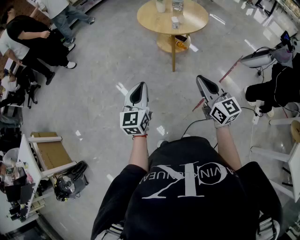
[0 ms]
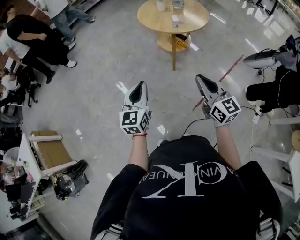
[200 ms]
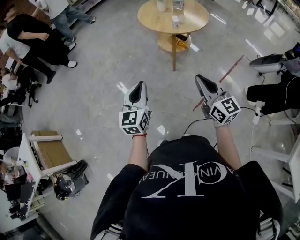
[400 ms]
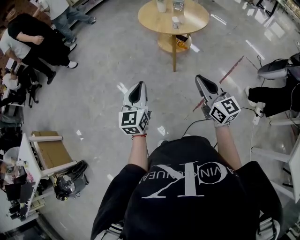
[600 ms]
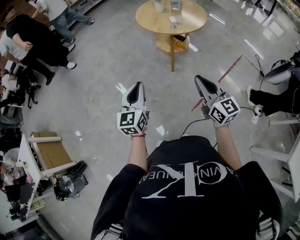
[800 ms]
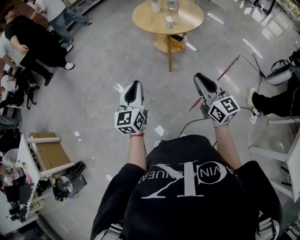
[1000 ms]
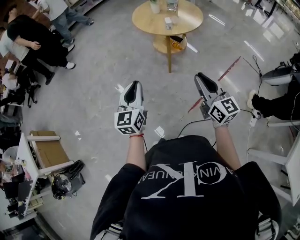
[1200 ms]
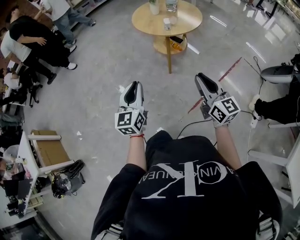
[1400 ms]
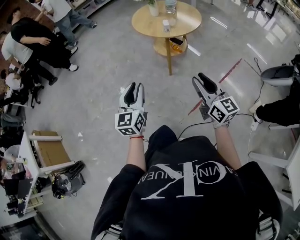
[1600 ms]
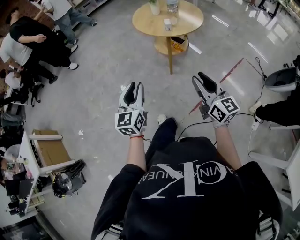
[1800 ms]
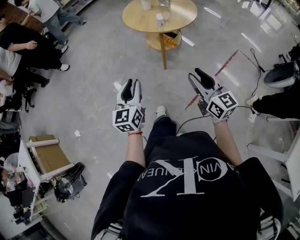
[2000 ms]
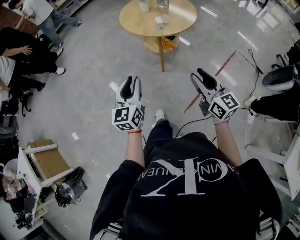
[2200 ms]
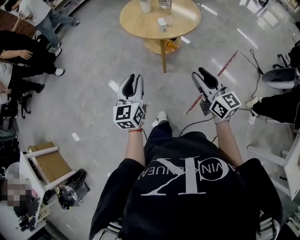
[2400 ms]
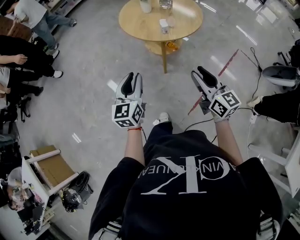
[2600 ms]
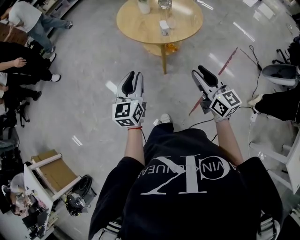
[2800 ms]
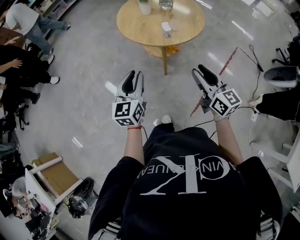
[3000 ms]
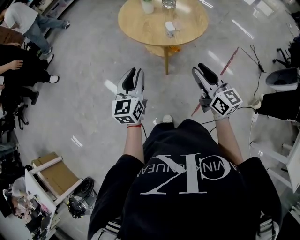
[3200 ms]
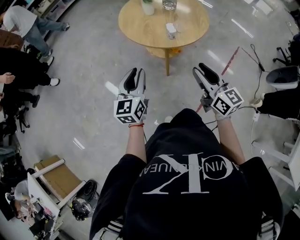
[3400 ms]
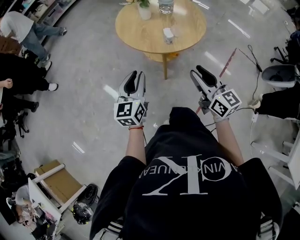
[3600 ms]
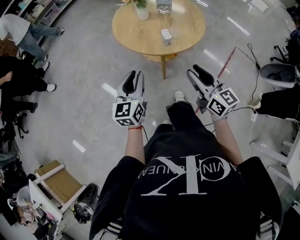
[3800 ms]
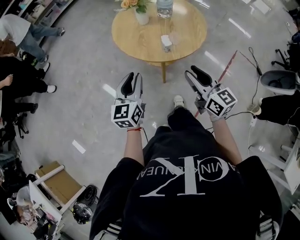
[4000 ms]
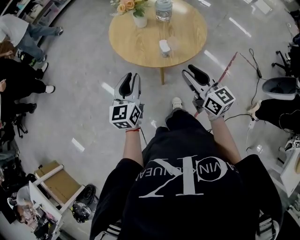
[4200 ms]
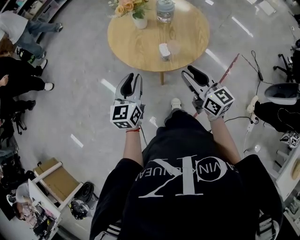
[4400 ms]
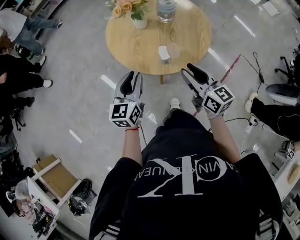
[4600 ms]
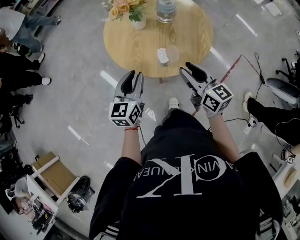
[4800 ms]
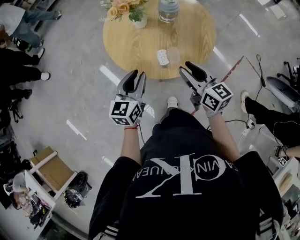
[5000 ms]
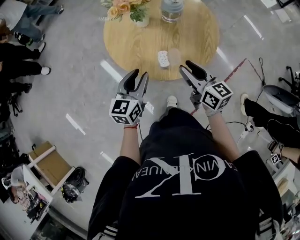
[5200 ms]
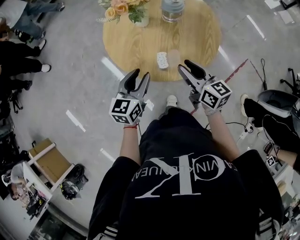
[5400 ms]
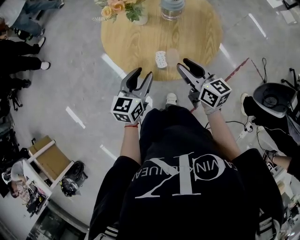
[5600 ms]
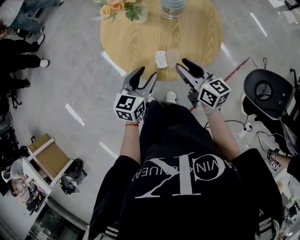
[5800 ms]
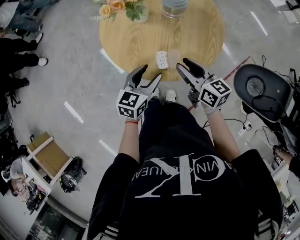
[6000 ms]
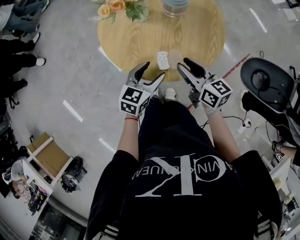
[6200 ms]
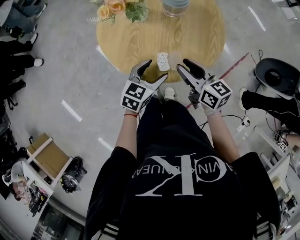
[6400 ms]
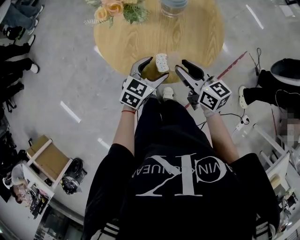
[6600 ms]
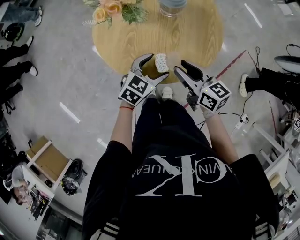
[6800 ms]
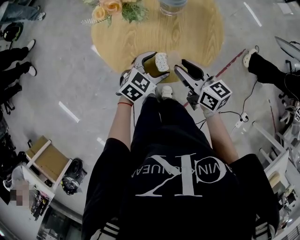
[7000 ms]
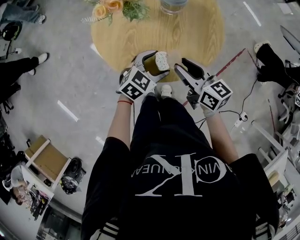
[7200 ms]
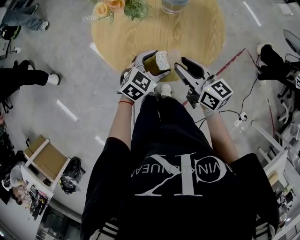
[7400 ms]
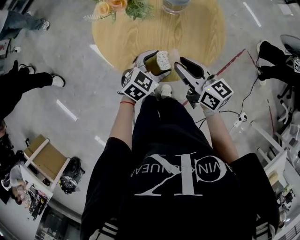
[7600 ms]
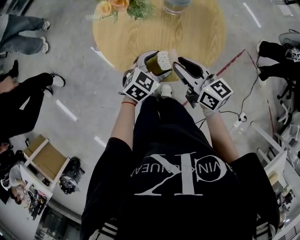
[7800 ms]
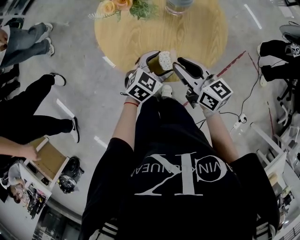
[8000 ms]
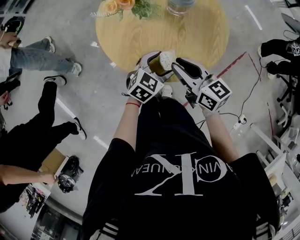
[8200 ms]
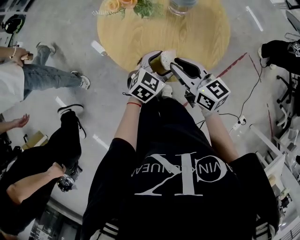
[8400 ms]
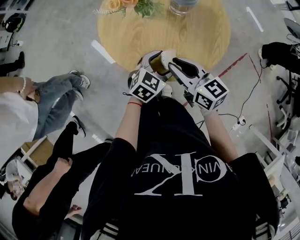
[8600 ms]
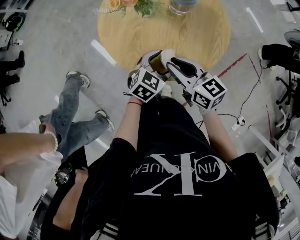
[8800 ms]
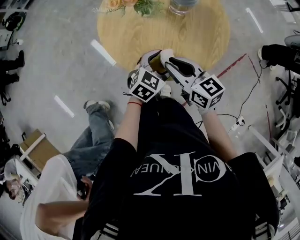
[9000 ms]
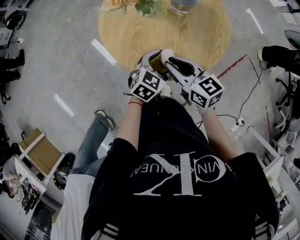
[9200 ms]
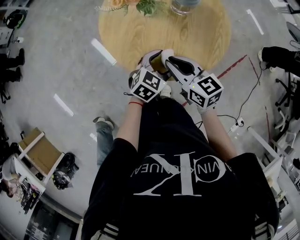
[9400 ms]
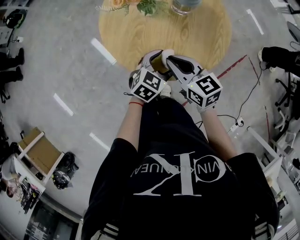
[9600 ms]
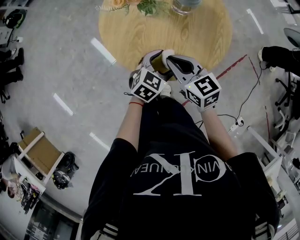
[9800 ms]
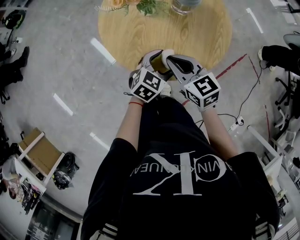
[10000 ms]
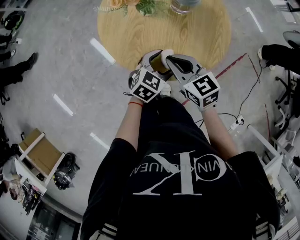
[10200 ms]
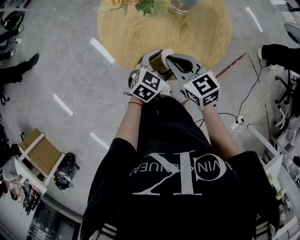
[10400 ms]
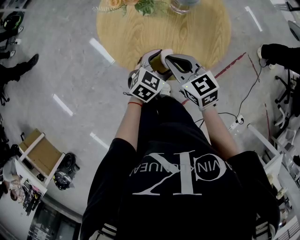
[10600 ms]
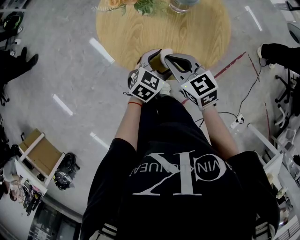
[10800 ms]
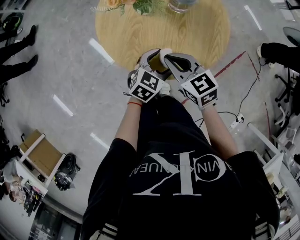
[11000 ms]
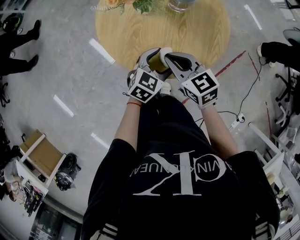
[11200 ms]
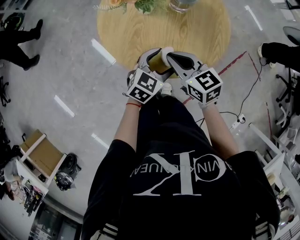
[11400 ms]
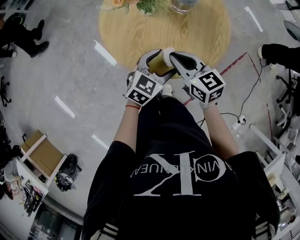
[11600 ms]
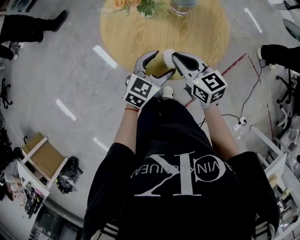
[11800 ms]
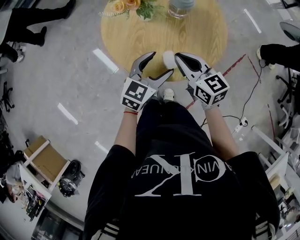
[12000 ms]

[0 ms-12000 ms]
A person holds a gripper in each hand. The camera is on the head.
0 ms to 1600 ms: Both grippers move to the right, about 5 cm.
1600 ms to 3000 ms: Both grippers move forward, roughly 25 cm.
3000 ms to 4400 ms: The two grippers go about 15 cm forward.
4400 ms to 6000 ms: The left gripper goes about 15 cm to the right, downward and forward, and opens its fingers, while the right gripper moves forward and downward, roughly 15 cm.
6000 ms to 7600 ms: The left gripper heads downward, covering about 5 cm, and turns by roughly 30 degrees.
7600 ms to 9000 ms: The grippers make only small movements.
9000 ms to 10400 ms: The grippers move only a little.
10400 ms to 12000 ms: The left gripper travels upward by roughly 10 cm.

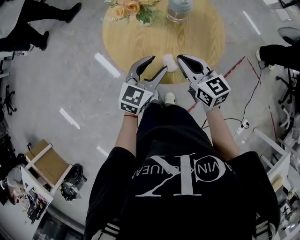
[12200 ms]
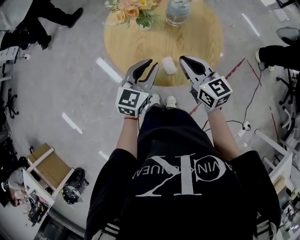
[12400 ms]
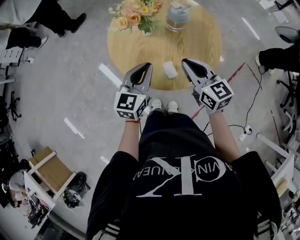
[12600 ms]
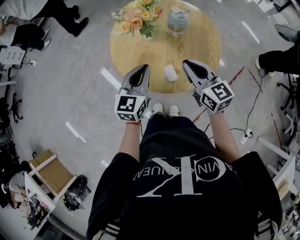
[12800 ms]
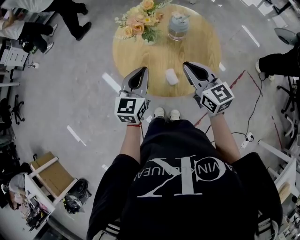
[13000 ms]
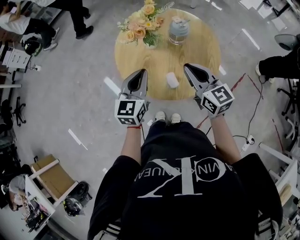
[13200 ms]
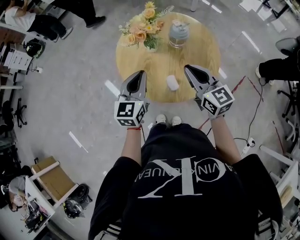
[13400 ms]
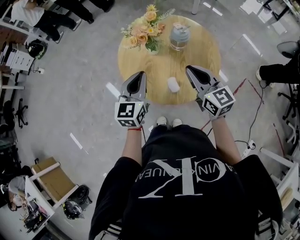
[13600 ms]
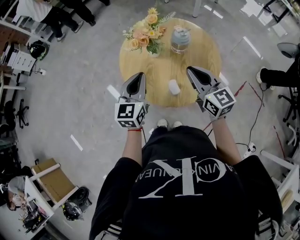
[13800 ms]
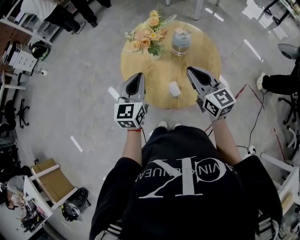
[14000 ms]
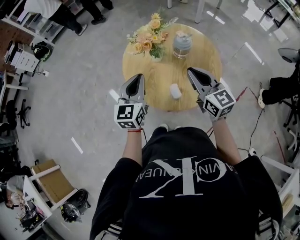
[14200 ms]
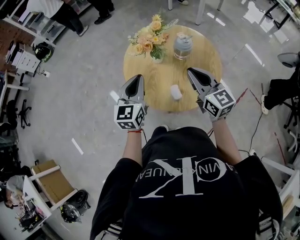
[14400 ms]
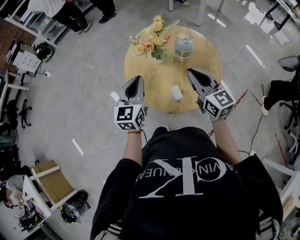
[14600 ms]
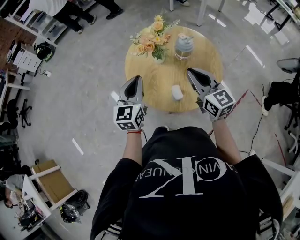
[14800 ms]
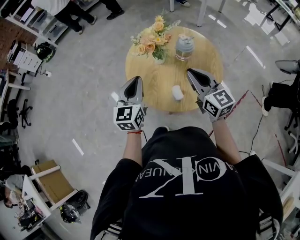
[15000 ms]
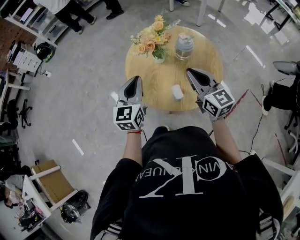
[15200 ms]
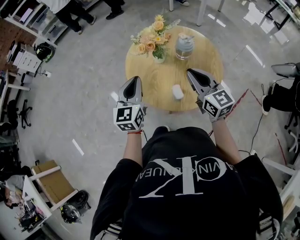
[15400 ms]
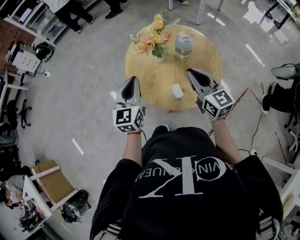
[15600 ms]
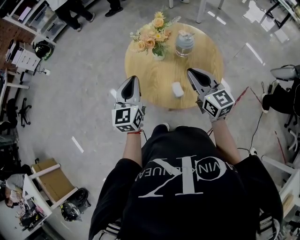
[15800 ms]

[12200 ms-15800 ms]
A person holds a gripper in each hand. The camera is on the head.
12200 ms to 14000 ms: The right gripper goes roughly 10 cm upward. The left gripper goes some 15 cm upward and to the left, changes its angle by approximately 30 degrees, and closes its fingers.
14000 ms to 15800 ms: The grippers make only small movements.

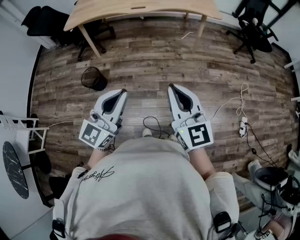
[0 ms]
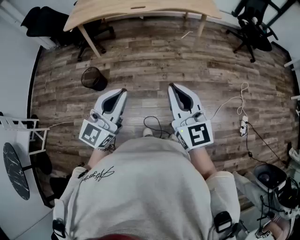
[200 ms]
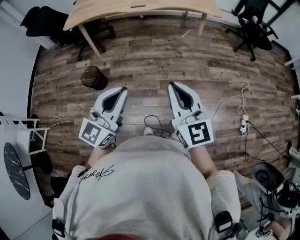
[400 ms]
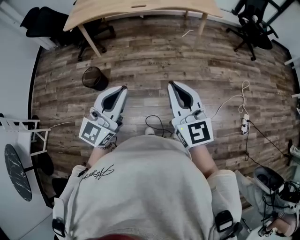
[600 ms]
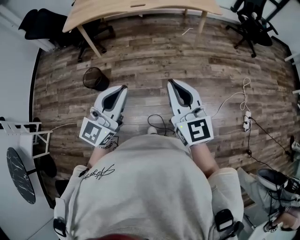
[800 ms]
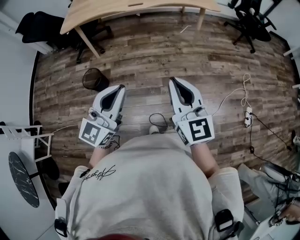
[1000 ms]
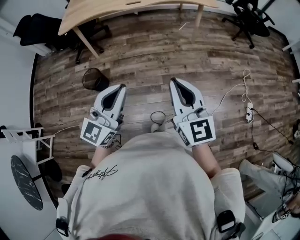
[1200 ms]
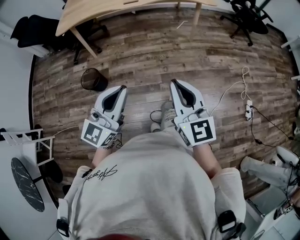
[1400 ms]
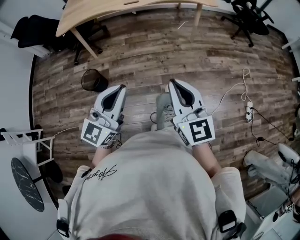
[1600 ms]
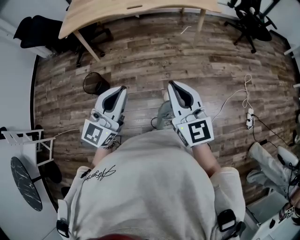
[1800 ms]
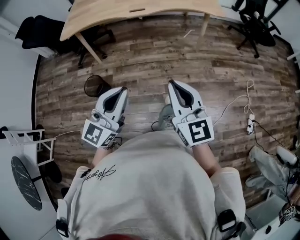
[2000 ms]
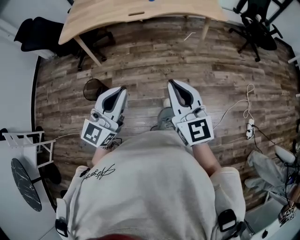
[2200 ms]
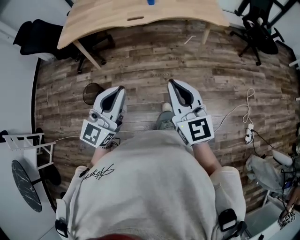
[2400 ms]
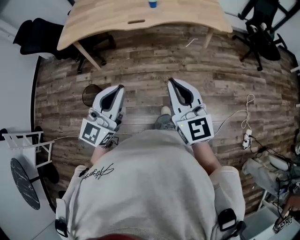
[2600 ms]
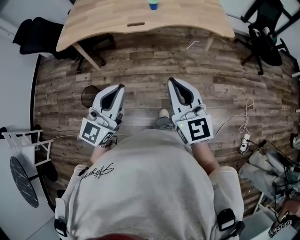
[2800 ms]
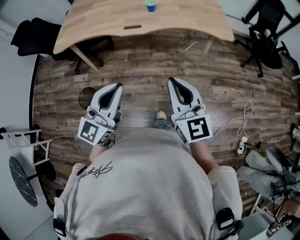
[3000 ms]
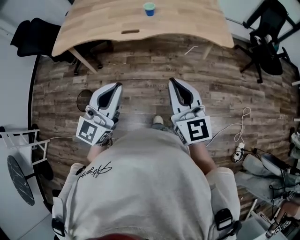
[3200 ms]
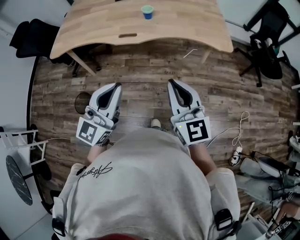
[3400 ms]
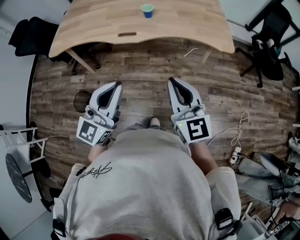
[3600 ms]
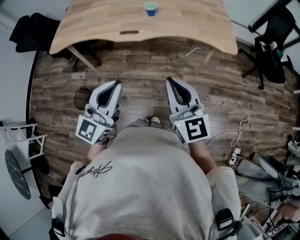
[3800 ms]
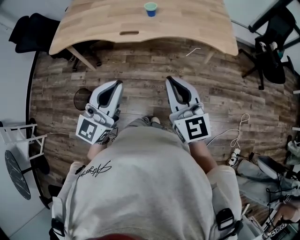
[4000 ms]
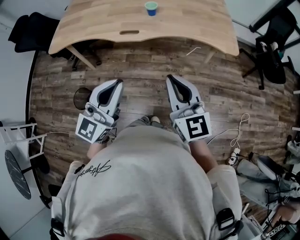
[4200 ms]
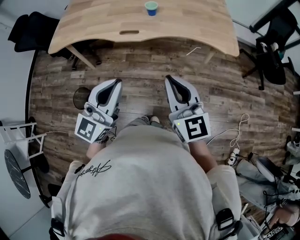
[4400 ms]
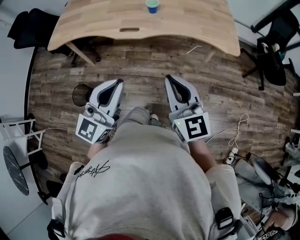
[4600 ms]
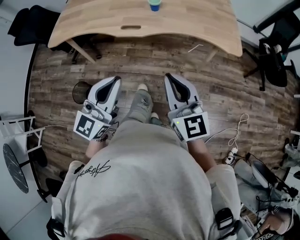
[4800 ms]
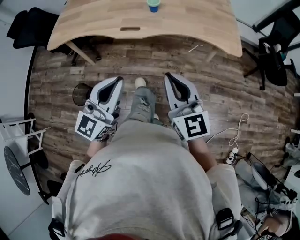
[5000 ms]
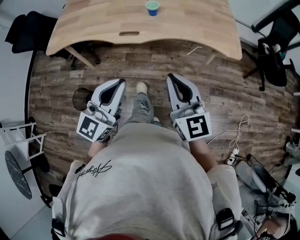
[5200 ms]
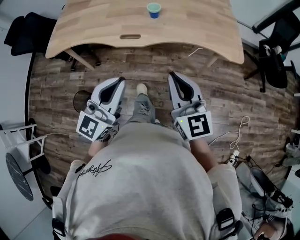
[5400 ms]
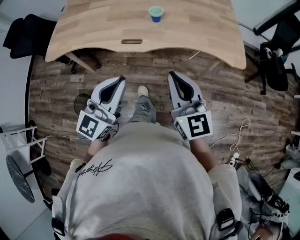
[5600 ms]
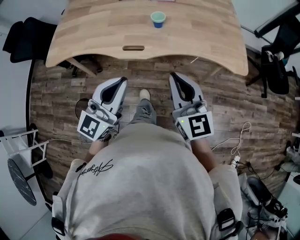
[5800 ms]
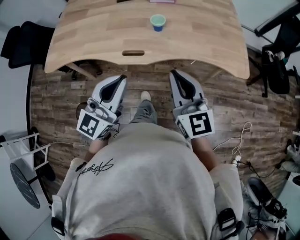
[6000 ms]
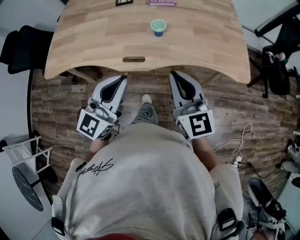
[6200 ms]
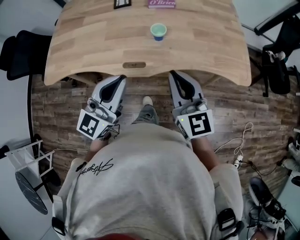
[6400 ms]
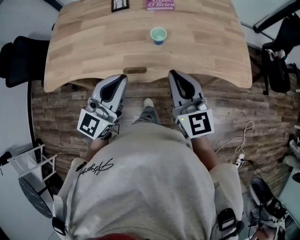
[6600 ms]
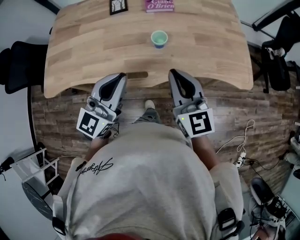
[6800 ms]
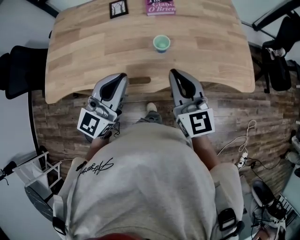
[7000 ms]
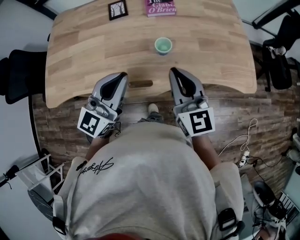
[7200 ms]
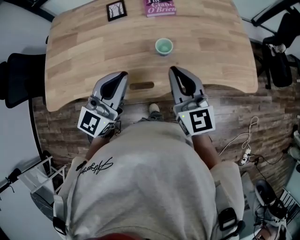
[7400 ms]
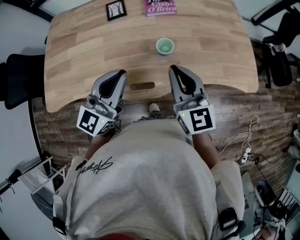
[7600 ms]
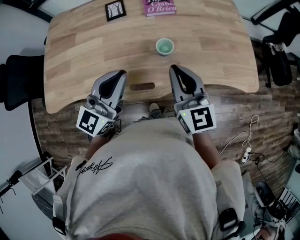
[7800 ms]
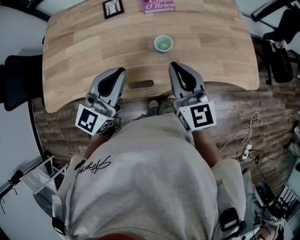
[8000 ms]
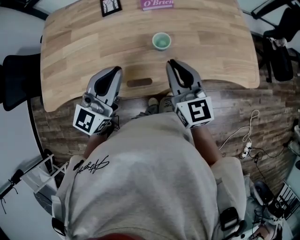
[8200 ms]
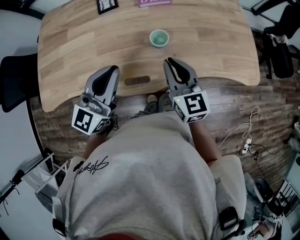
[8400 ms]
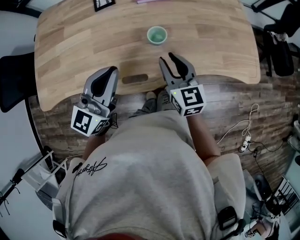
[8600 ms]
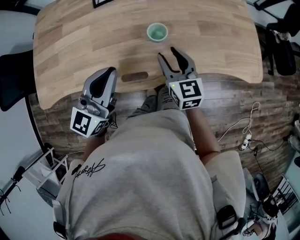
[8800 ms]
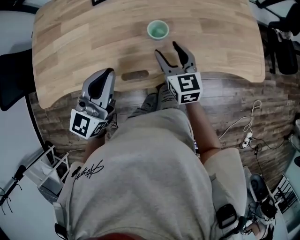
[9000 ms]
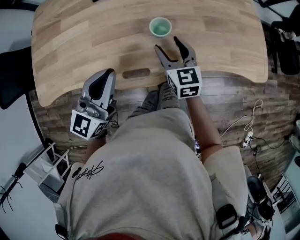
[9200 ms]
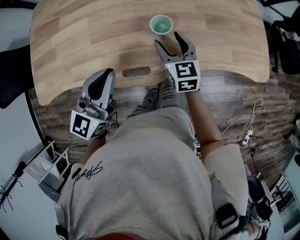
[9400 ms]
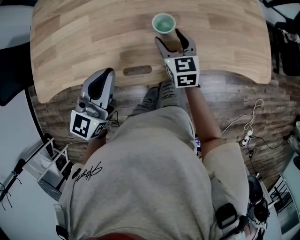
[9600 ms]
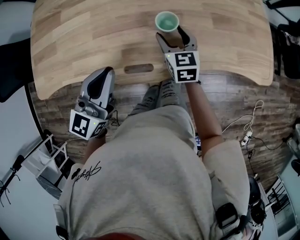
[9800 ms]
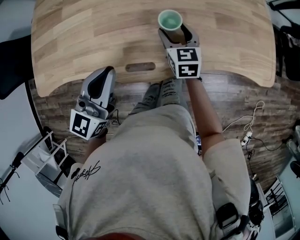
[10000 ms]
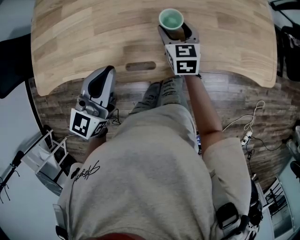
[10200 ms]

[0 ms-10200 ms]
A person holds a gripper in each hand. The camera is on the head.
0 ms to 1400 ms: The grippers make only small movements.
1400 ms to 3000 ms: The two grippers go about 30 cm forward.
3000 ms to 4400 ms: Both grippers travel together forward, some 10 cm.
4400 ms to 5800 ms: Both grippers move forward, roughly 15 cm.
5800 ms to 7200 ms: Both grippers move forward, approximately 20 cm.
7200 ms to 8800 ms: The left gripper changes place by approximately 5 cm. Meanwhile the right gripper moves downward and forward, approximately 15 cm, and opens its fingers.
8800 ms to 10200 ms: The right gripper is displaced downward and forward by about 10 cm, and opens its fingers. The left gripper shifts by about 5 cm.
